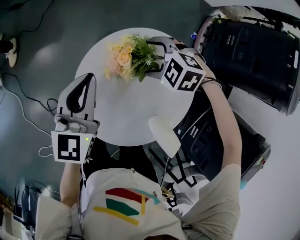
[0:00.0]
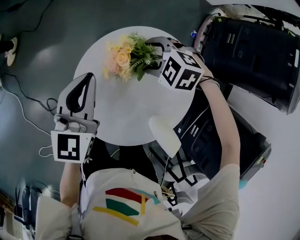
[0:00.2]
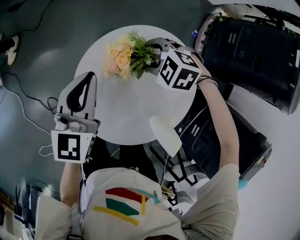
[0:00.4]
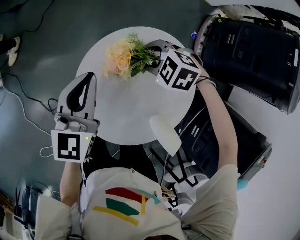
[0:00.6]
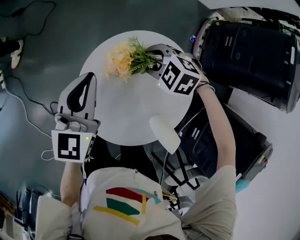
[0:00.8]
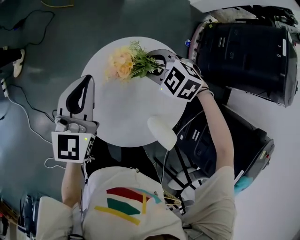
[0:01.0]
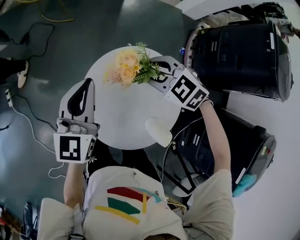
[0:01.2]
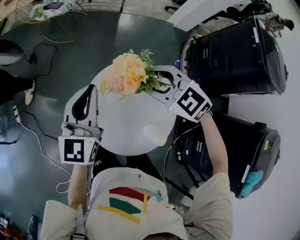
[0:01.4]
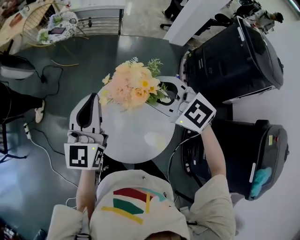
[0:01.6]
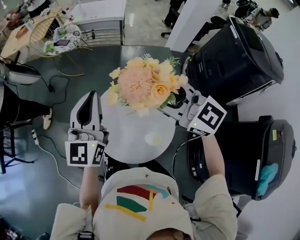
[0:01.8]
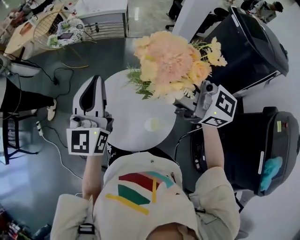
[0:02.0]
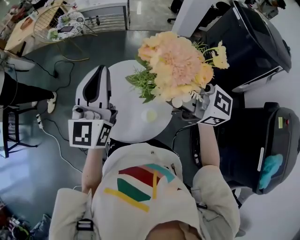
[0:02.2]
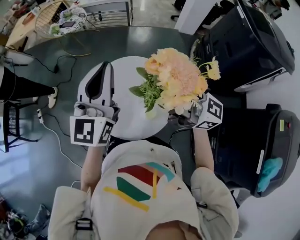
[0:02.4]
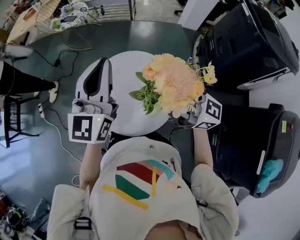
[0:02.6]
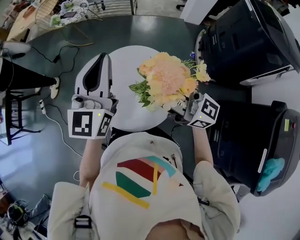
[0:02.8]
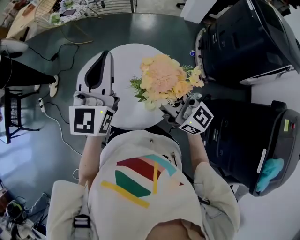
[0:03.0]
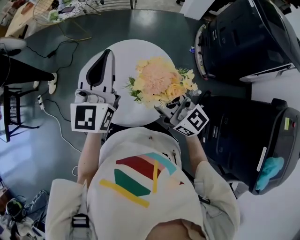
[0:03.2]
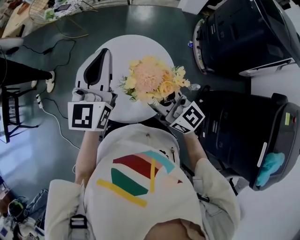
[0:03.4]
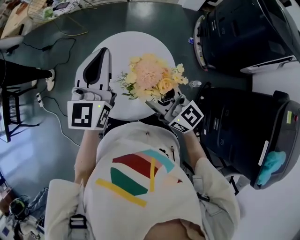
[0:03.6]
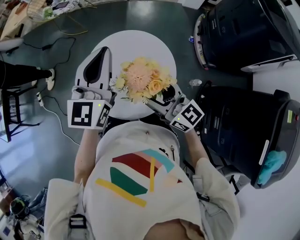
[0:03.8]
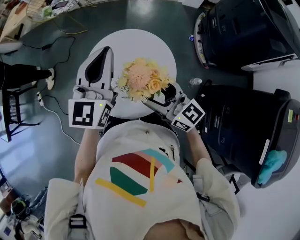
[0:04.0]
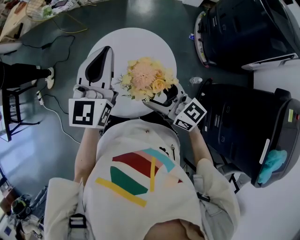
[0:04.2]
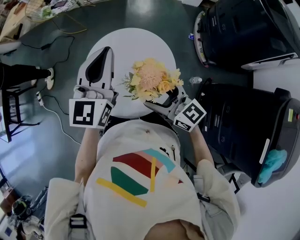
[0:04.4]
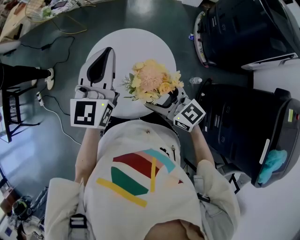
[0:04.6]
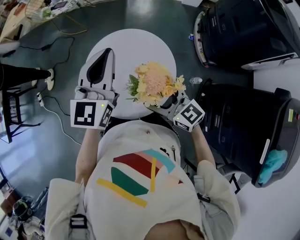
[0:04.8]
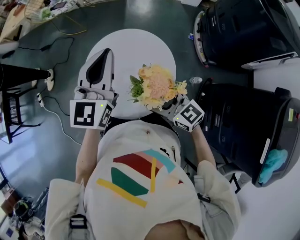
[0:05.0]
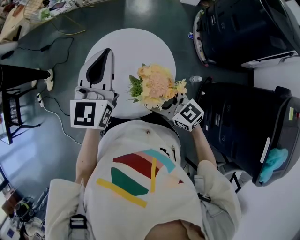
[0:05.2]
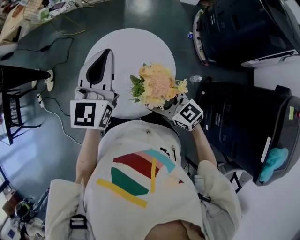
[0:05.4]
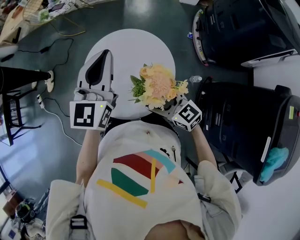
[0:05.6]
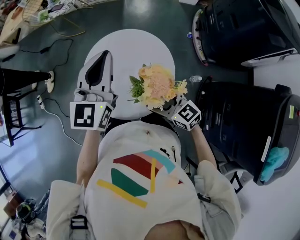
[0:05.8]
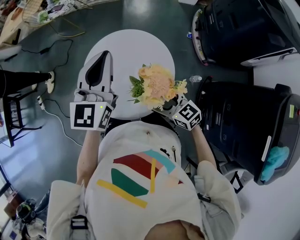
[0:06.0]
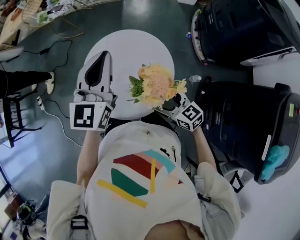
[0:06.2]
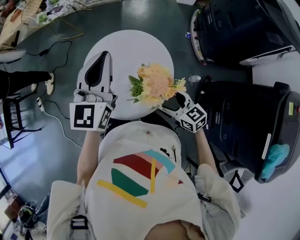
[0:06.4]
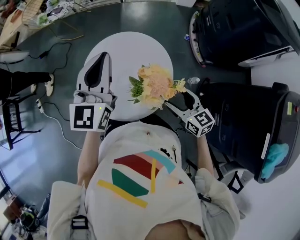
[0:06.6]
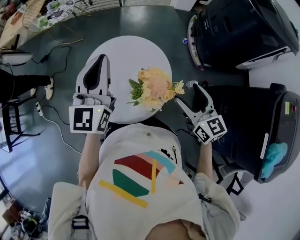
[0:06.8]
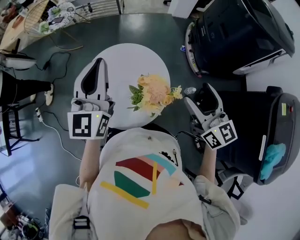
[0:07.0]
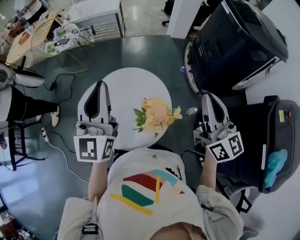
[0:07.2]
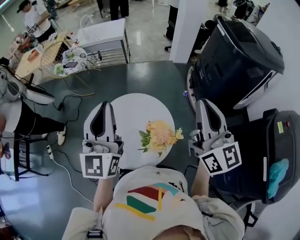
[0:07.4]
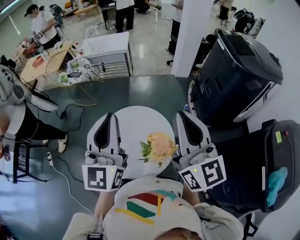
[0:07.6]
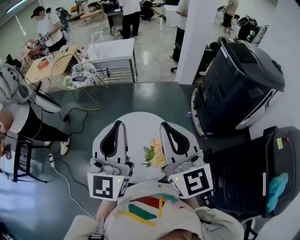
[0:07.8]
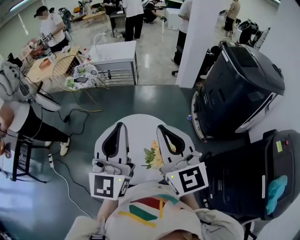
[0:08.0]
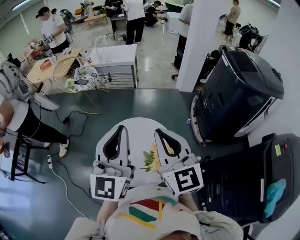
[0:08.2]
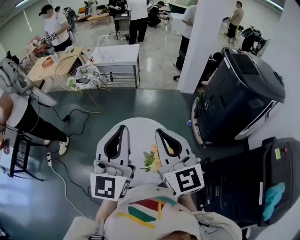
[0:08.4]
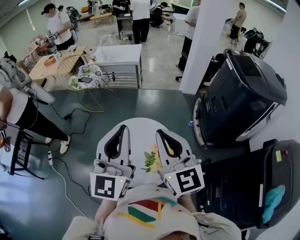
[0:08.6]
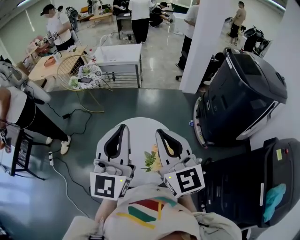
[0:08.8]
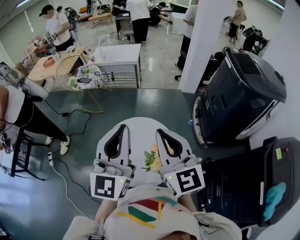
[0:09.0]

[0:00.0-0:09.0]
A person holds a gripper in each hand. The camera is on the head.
0.0 to 1.6 s: Both grippers move upward, approximately 30 cm. The left gripper swivels roughly 20 degrees; the right gripper tilts its fingers approximately 50 degrees upward, and closes.
1.6 to 3.0 s: The left gripper moves backward and to the right, approximately 15 cm. Meanwhile the right gripper goes roughly 15 cm backward, and tips its fingers upward by roughly 30 degrees.
3.0 to 4.4 s: The left gripper is displaced downward by roughly 5 cm, while the right gripper moves downward, about 10 cm, and opens up.
4.4 to 6.0 s: The right gripper goes about 10 cm downward.
6.0 to 7.6 s: The right gripper travels upward by approximately 40 cm, tilts its fingers some 30 degrees upward, and closes up. Meanwhile the left gripper heads upward, covering about 15 cm.
7.6 to 9.0 s: The right gripper is displaced to the left by some 5 cm.

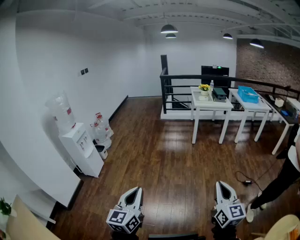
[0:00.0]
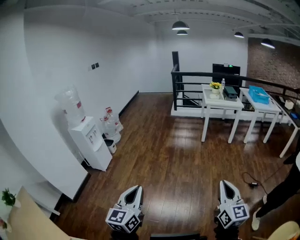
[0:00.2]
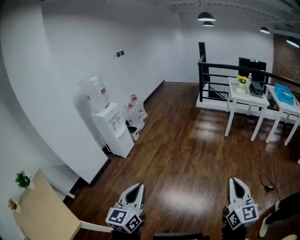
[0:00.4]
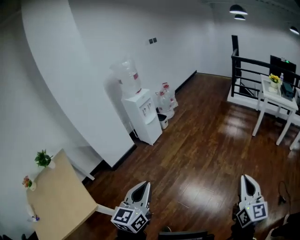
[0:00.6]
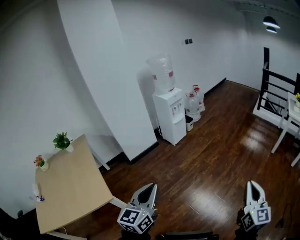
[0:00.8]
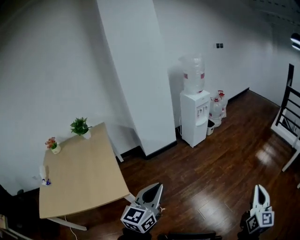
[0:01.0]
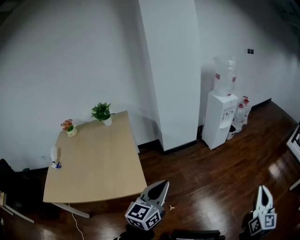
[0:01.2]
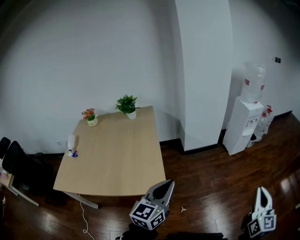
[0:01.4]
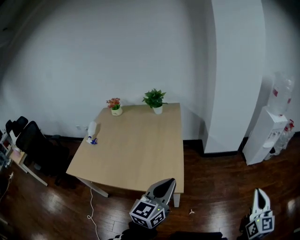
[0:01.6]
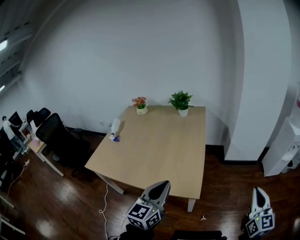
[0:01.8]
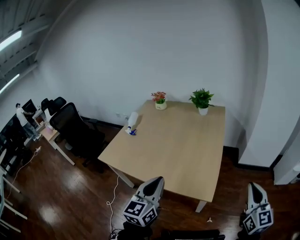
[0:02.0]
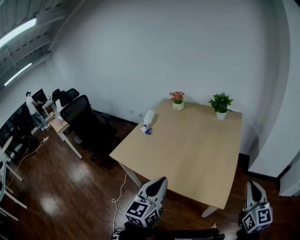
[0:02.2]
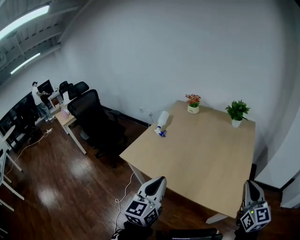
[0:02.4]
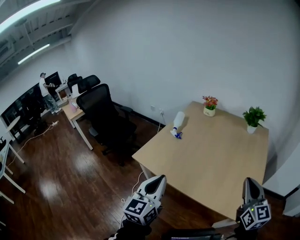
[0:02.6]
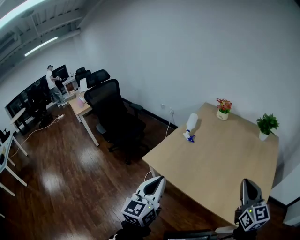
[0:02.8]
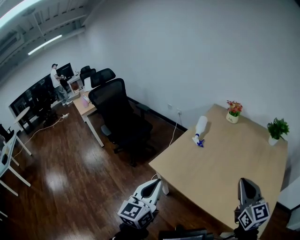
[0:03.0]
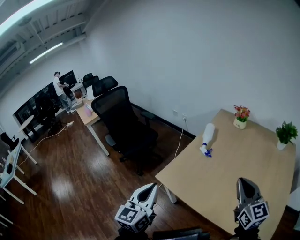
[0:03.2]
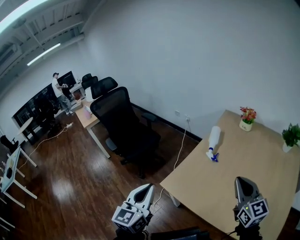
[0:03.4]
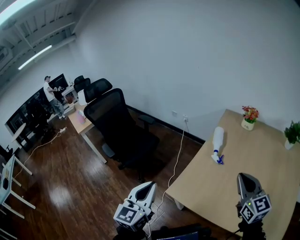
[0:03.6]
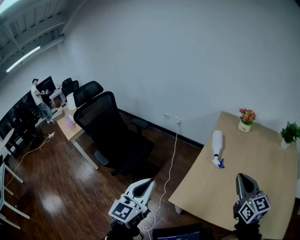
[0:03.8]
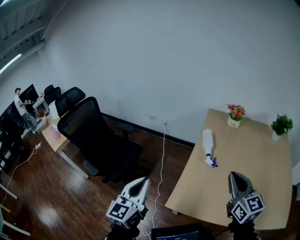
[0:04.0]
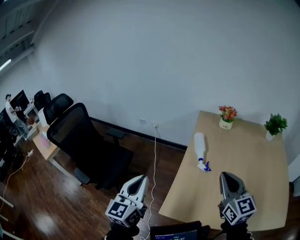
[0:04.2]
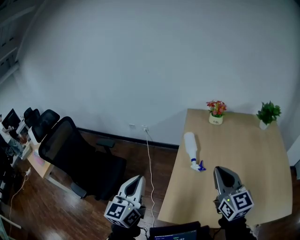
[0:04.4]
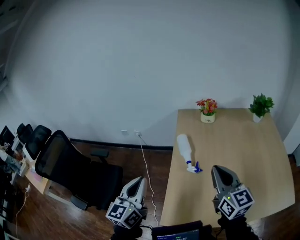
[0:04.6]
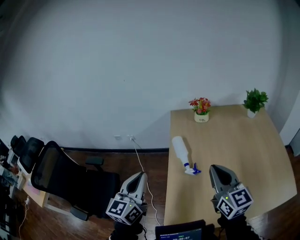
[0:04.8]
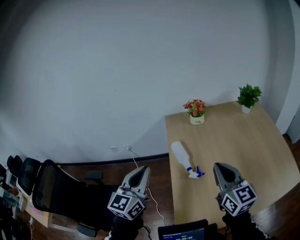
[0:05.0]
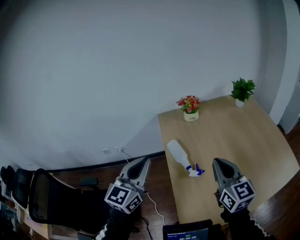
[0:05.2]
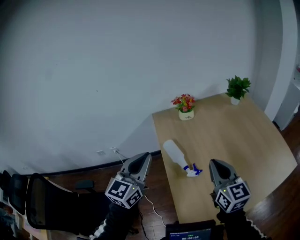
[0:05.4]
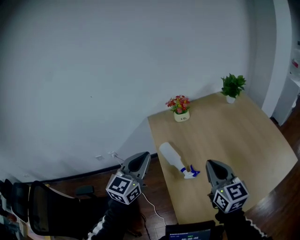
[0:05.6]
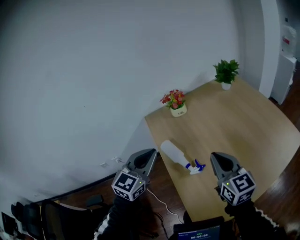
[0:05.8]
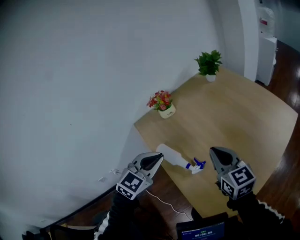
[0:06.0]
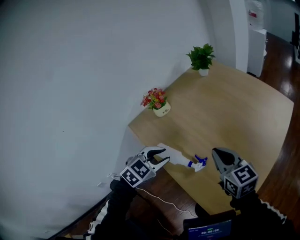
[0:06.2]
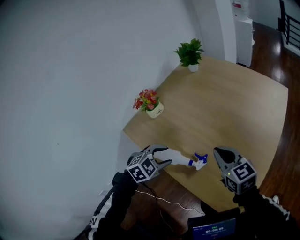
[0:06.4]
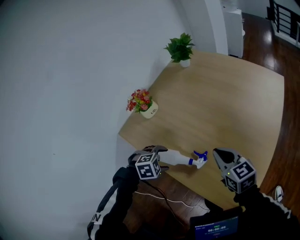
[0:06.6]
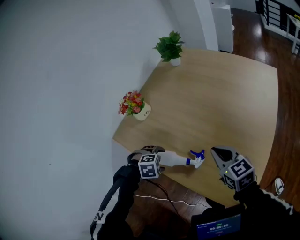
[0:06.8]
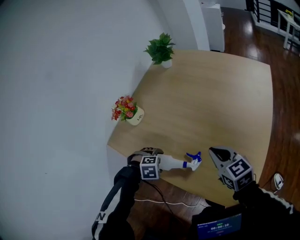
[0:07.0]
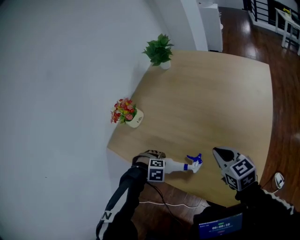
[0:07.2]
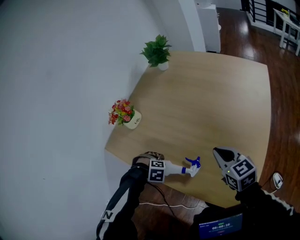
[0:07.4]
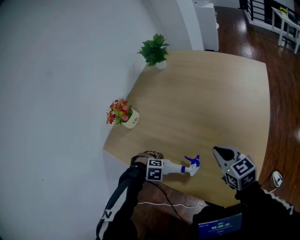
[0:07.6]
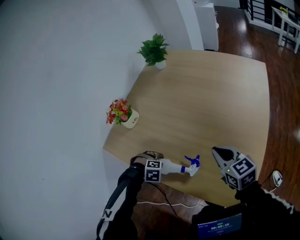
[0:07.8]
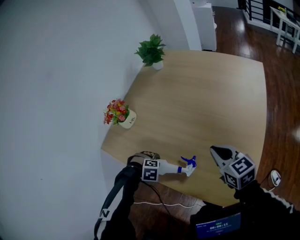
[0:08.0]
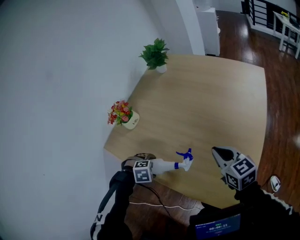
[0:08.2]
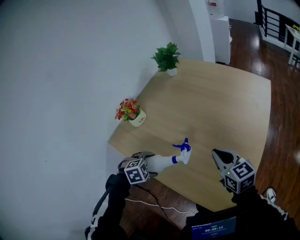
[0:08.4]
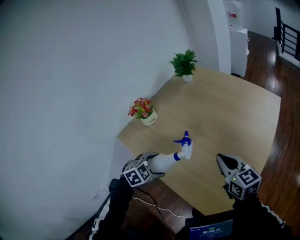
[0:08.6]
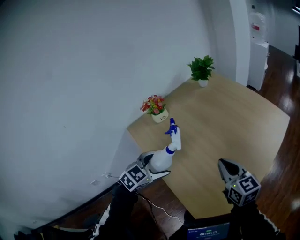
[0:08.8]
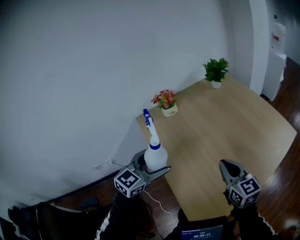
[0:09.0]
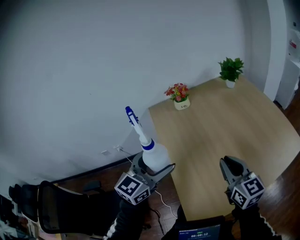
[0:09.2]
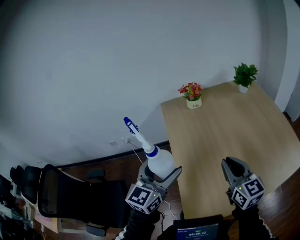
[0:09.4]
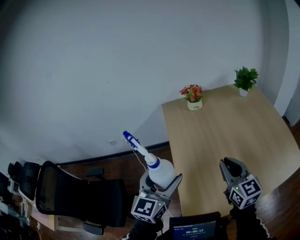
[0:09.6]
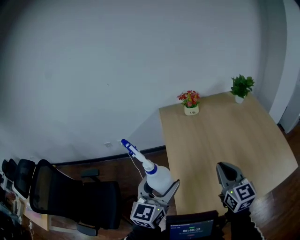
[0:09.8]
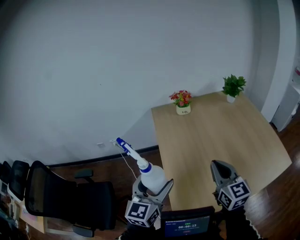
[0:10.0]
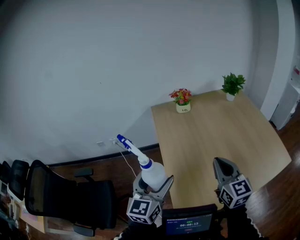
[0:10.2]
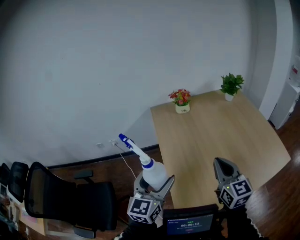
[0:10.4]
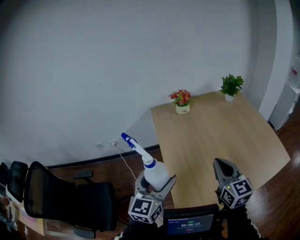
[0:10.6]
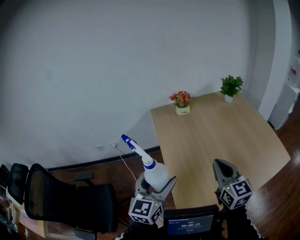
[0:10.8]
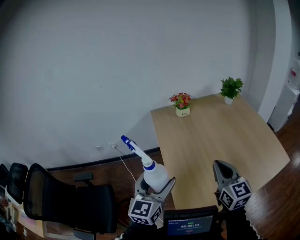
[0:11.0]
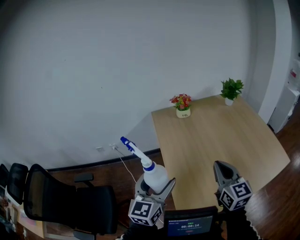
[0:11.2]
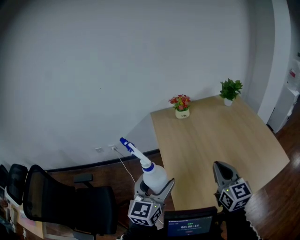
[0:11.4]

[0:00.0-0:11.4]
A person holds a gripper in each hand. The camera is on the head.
0.0 to 1.4 s: The pair of grippers is taken approximately 90 cm. The right gripper turns by some 60 degrees. Meanwhile the left gripper turns by approximately 60 degrees.
1.4 to 2.8 s: Both grippers are carried approximately 1 m. The right gripper changes its angle by approximately 60 degrees; the left gripper swivels about 50 degrees.
2.8 to 4.2 s: The two grippers travel together, forward and to the left, some 70 cm.
4.2 to 5.6 s: The left gripper shifts by some 40 cm, and turns by roughly 50 degrees; the right gripper changes place by roughly 25 cm, and swivels about 30 degrees.
5.6 to 7.2 s: The right gripper travels downward by approximately 20 cm, and swivels roughly 40 degrees, while the left gripper moves downward, about 40 cm, angles its fingers downward, by some 80 degrees, and opens up.
7.2 to 8.6 s: The left gripper travels upward by some 20 cm, and swivels about 50 degrees. The right gripper heads upward, covering approximately 10 cm.
8.6 to 10.0 s: The right gripper moves about 15 cm, and turns by about 30 degrees; the left gripper moves approximately 35 cm, and tips its fingers upward by about 60 degrees.
10.0 to 11.4 s: The grippers move only a little.

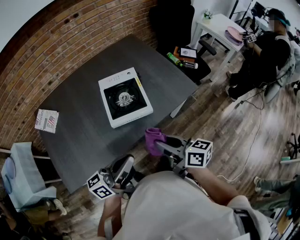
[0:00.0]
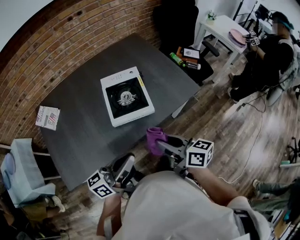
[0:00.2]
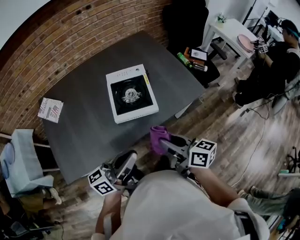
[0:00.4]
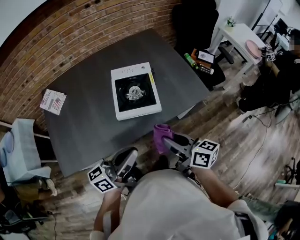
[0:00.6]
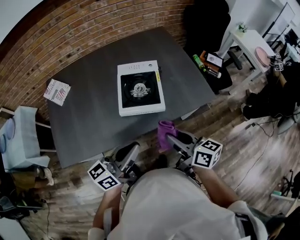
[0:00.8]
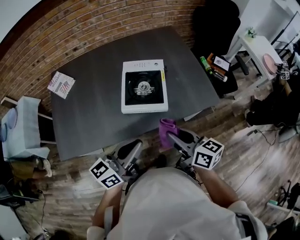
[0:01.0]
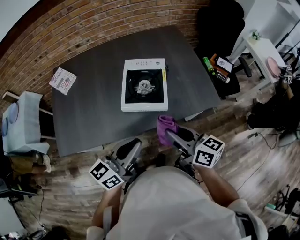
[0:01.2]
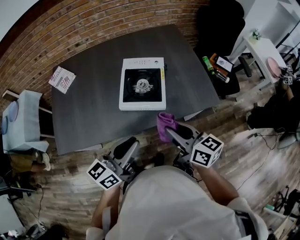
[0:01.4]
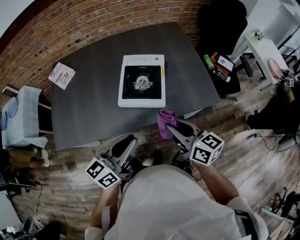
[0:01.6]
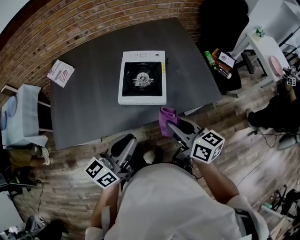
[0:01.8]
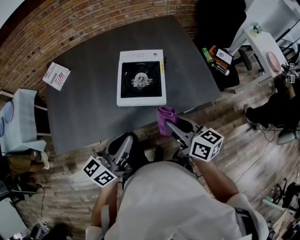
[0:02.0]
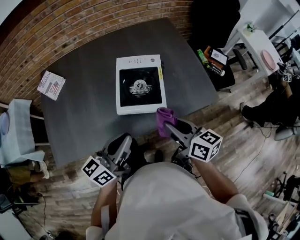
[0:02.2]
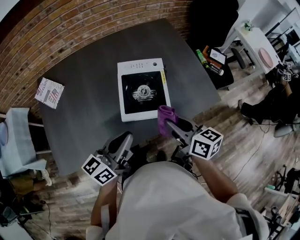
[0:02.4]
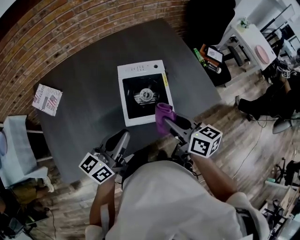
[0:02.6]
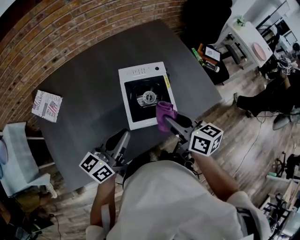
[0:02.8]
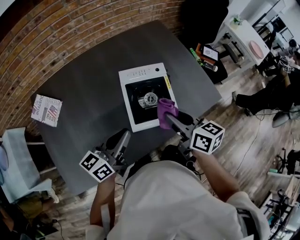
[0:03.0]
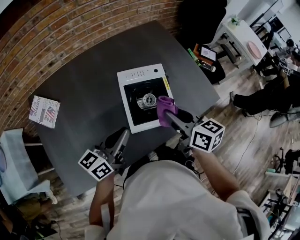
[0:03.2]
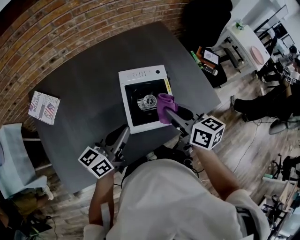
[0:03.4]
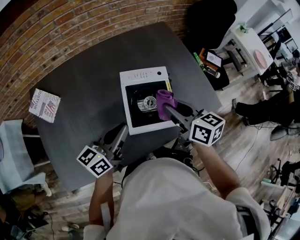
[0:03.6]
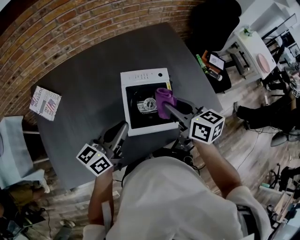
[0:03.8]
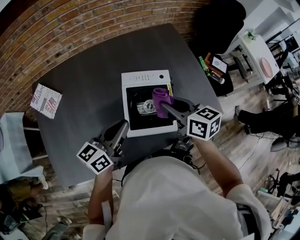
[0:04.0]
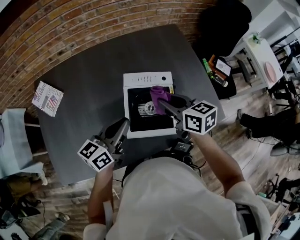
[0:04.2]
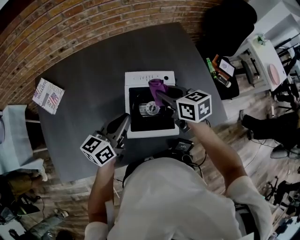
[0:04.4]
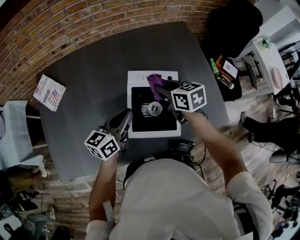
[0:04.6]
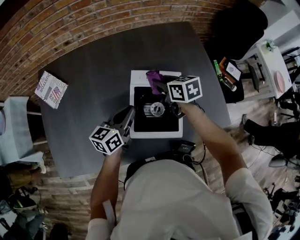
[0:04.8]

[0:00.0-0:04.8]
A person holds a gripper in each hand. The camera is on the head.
0.0 to 1.6 s: The left gripper moves approximately 5 cm, and turns by approximately 30 degrees; the right gripper moves forward and to the right, some 10 cm.
1.6 to 3.2 s: The two grippers go approximately 20 cm forward and to the left.
3.2 to 4.8 s: The right gripper is displaced forward and downward by roughly 25 cm, and turns by roughly 30 degrees, while the left gripper goes some 15 cm forward and downward, and rotates roughly 20 degrees.
